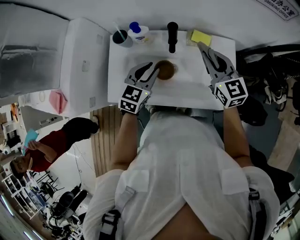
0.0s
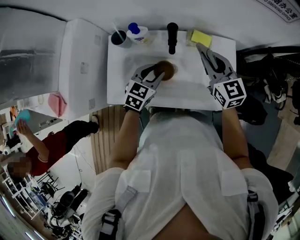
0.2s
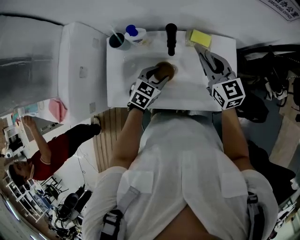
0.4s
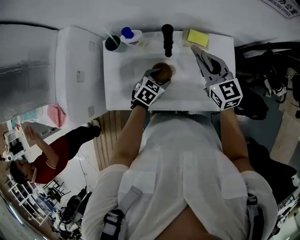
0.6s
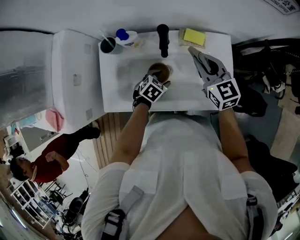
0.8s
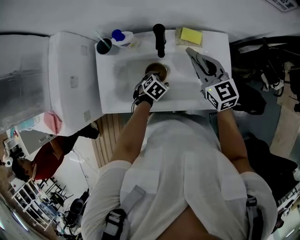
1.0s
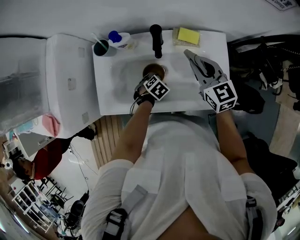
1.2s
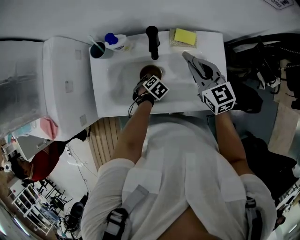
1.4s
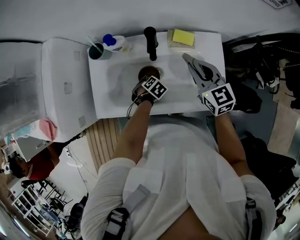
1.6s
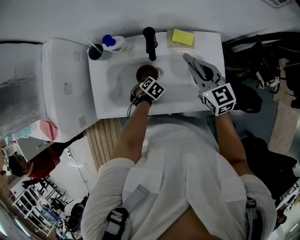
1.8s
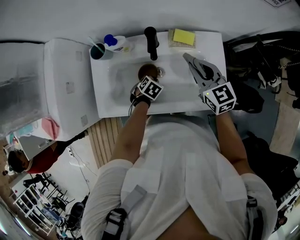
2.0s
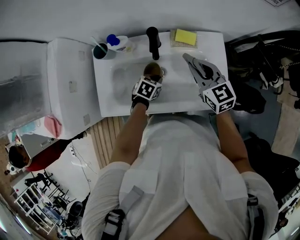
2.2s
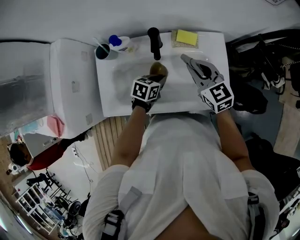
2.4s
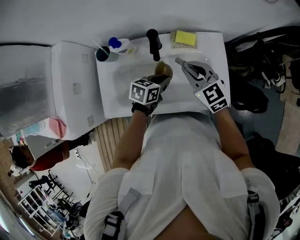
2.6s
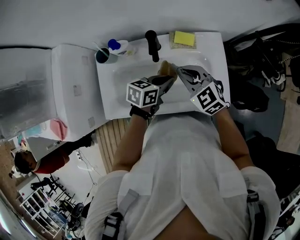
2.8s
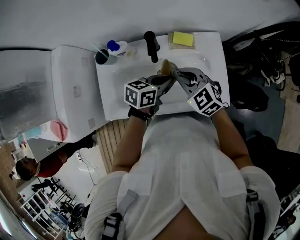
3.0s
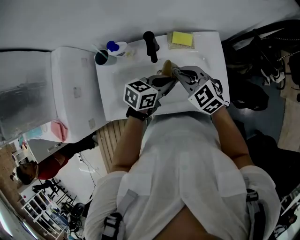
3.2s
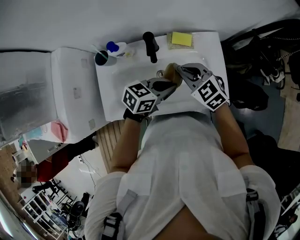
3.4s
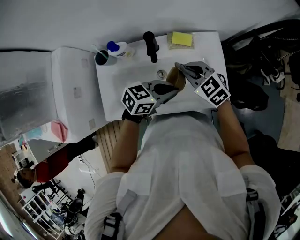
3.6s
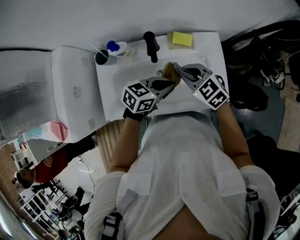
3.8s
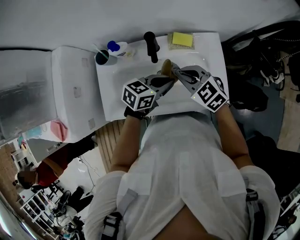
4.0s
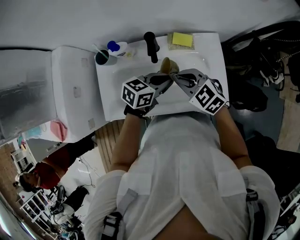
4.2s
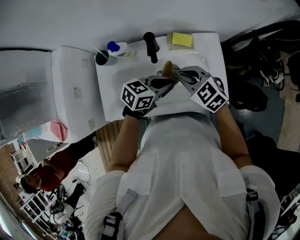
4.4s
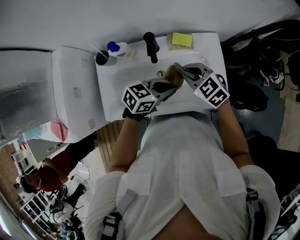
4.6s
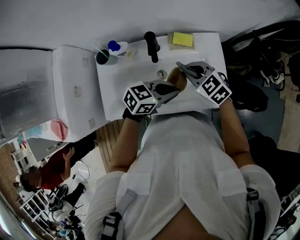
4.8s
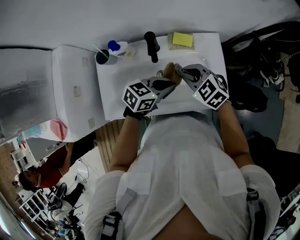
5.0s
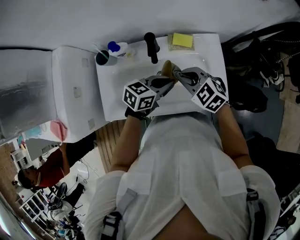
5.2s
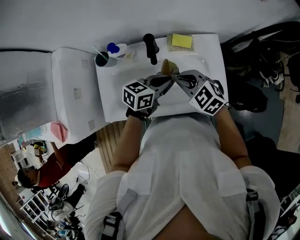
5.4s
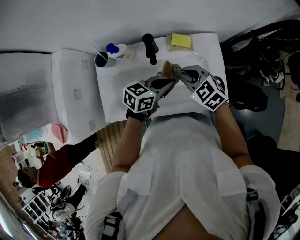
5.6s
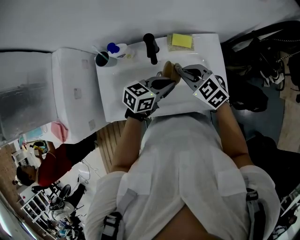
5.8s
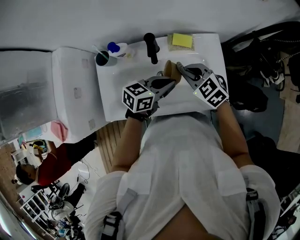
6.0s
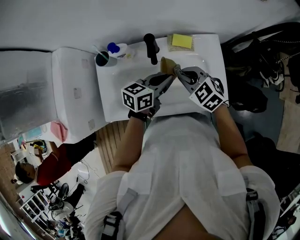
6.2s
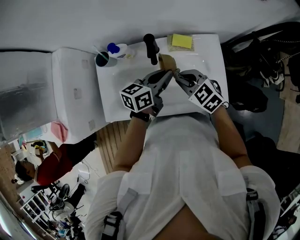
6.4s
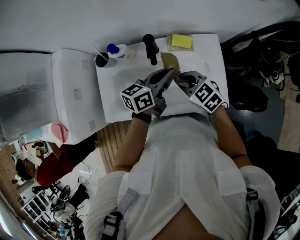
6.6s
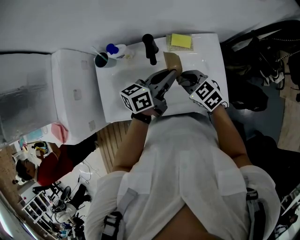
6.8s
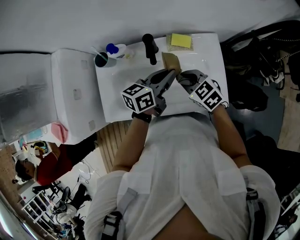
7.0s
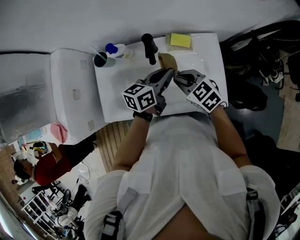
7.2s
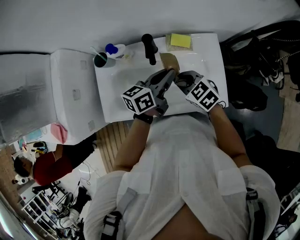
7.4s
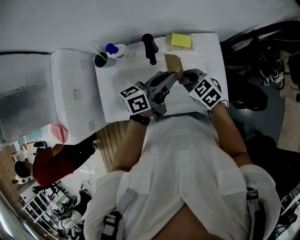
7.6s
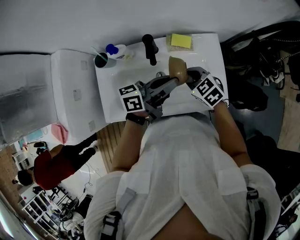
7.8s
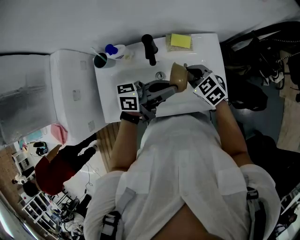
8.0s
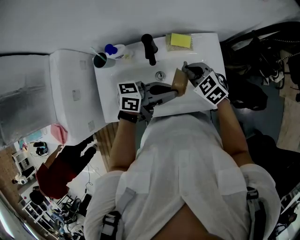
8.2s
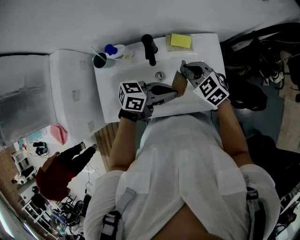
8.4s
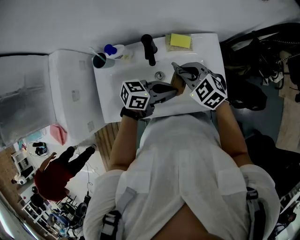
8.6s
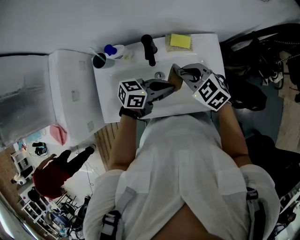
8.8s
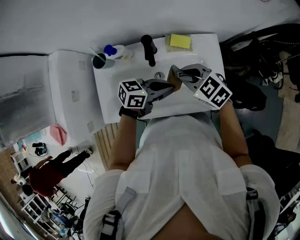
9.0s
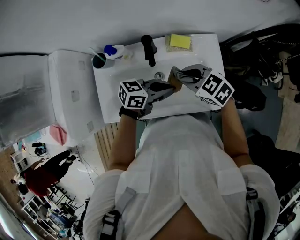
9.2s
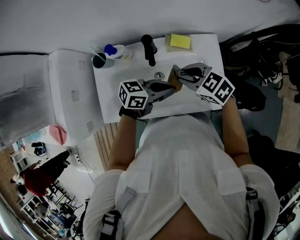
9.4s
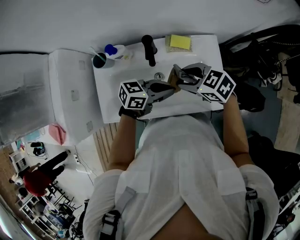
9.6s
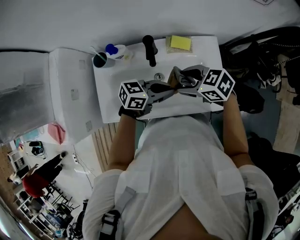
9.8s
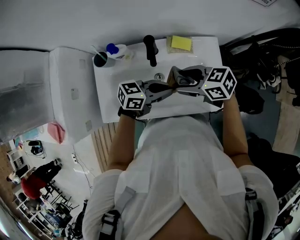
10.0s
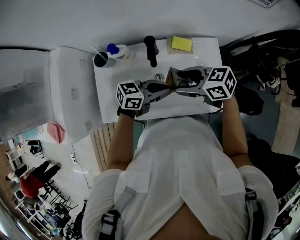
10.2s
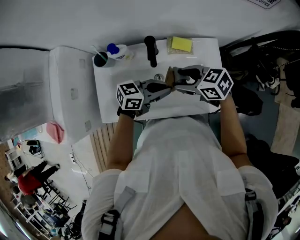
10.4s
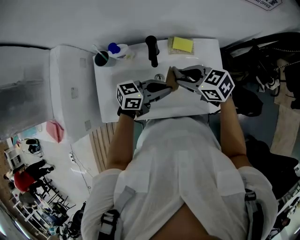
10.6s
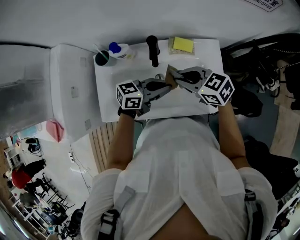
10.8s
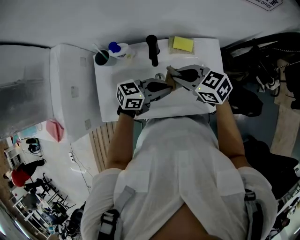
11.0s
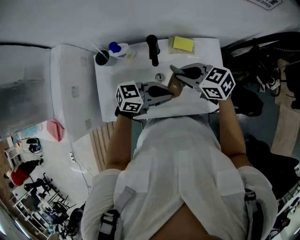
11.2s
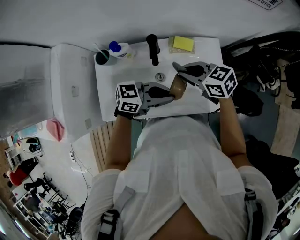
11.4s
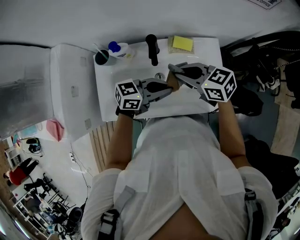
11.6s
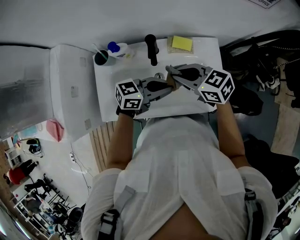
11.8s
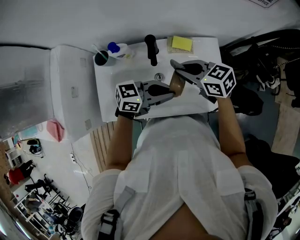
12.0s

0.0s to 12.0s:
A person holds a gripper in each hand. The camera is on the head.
0.0s to 1.6s: The right gripper travels downward by approximately 5 cm; the left gripper shifts approximately 25 cm downward, points its fingers approximately 50 degrees further downward, and opens and closes again.
1.6s to 3.0s: The right gripper moves approximately 5 cm, and swivels approximately 30 degrees. The left gripper travels upward by about 25 cm, angles its fingers upward, by approximately 50 degrees, and closes.
4.4s to 6.0s: There are only small adjustments of the grippers.
6.0s to 7.6s: The left gripper goes roughly 5 cm upward, and rotates about 30 degrees.
7.6s to 9.0s: The left gripper heads downward, covering approximately 5 cm, and swivels roughly 30 degrees, while the right gripper moves upward, some 5 cm.
9.0s to 10.4s: The right gripper turns by some 20 degrees, and opens up.
10.4s to 12.0s: The right gripper closes.

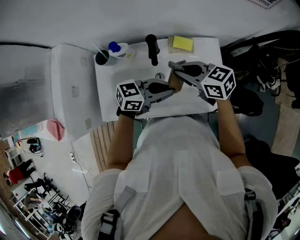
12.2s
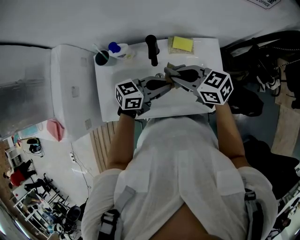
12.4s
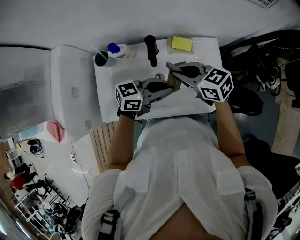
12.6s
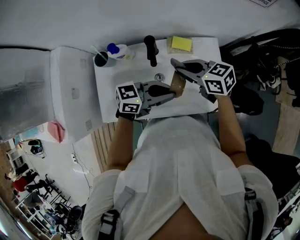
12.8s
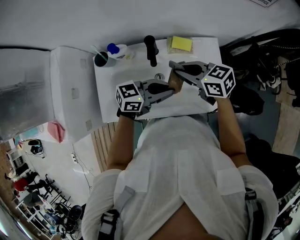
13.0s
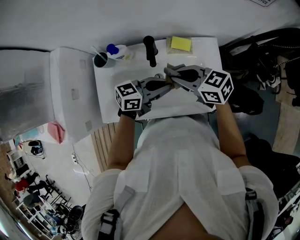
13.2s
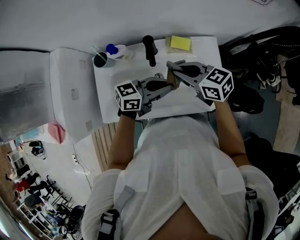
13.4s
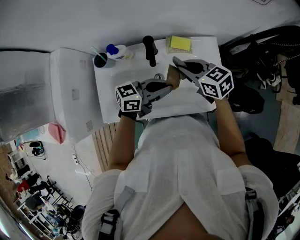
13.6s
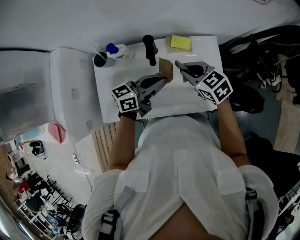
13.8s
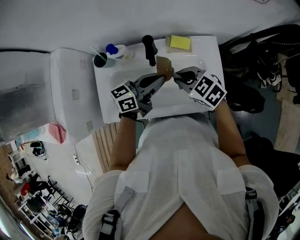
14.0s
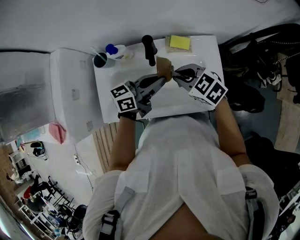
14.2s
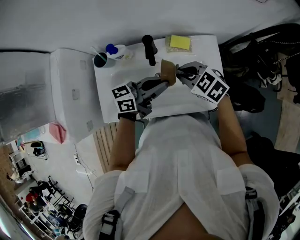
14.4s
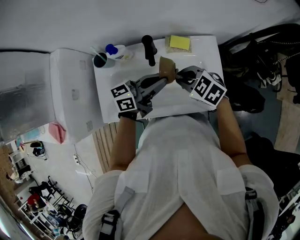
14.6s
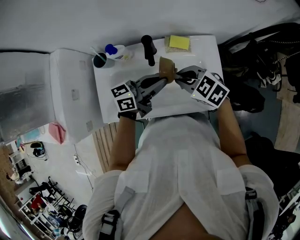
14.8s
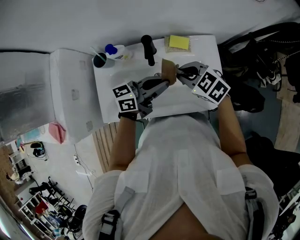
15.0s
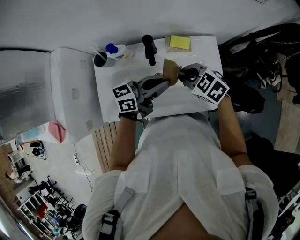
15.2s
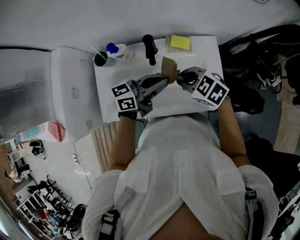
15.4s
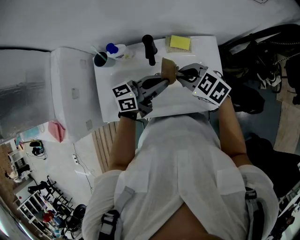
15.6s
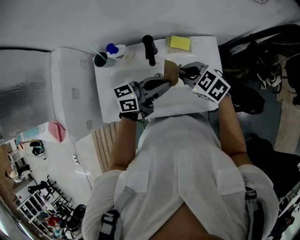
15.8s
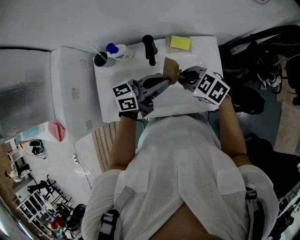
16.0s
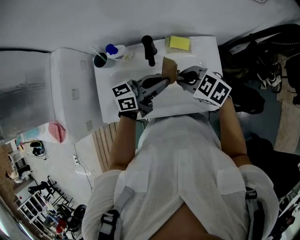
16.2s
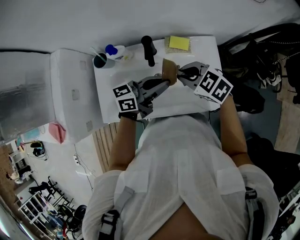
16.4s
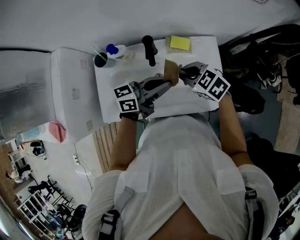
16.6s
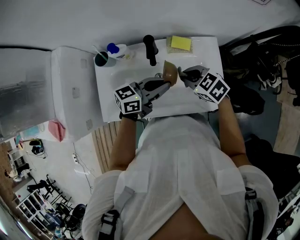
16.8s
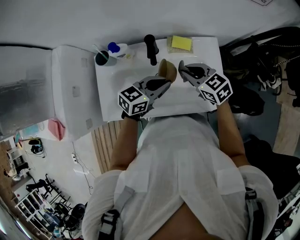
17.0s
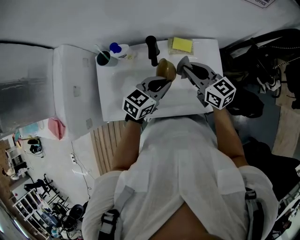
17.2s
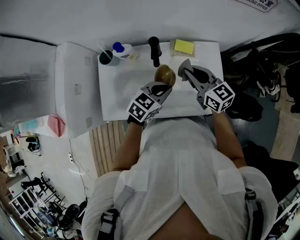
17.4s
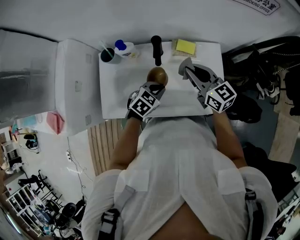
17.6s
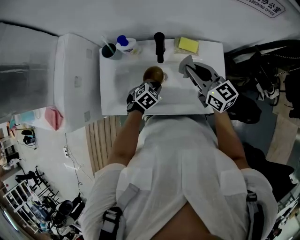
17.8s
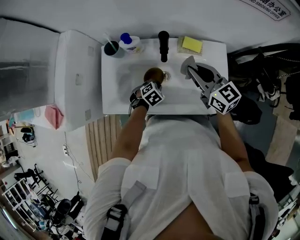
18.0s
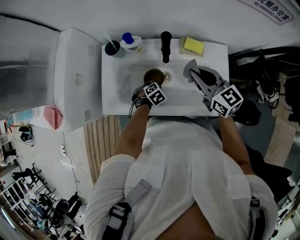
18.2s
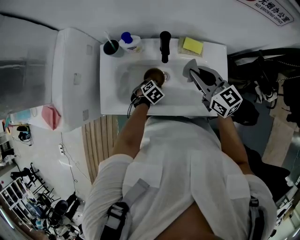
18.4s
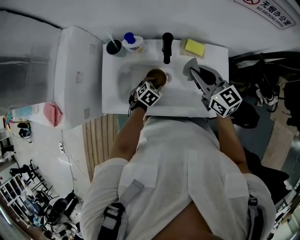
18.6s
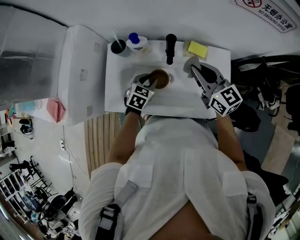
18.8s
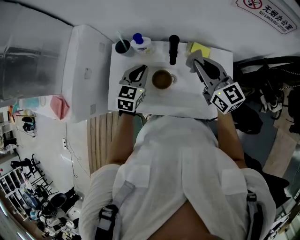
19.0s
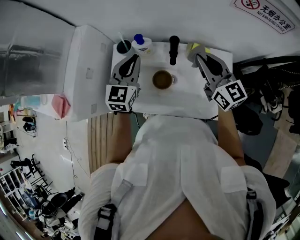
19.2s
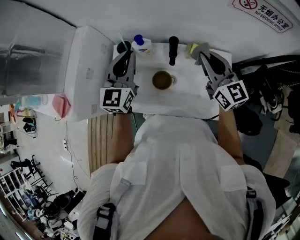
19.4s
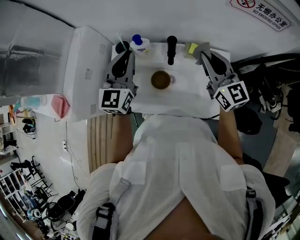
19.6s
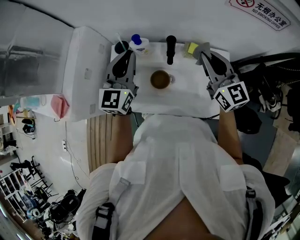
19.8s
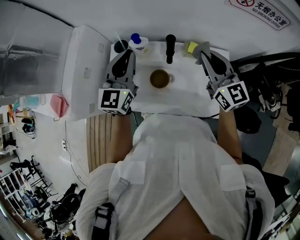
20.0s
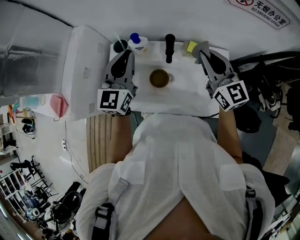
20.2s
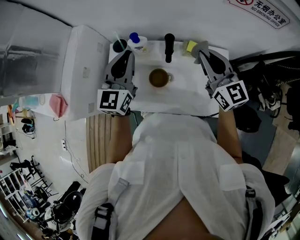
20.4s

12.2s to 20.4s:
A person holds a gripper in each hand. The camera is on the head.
12.2s to 13.8s: The left gripper changes place by some 5 cm, and swivels about 20 degrees.
13.8s to 15.4s: The right gripper changes place by roughly 5 cm.
15.4s to 17.2s: The left gripper swivels roughly 40 degrees. The right gripper changes place by roughly 10 cm, and tilts its fingers approximately 30 degrees upward.
17.2s to 18.8s: The left gripper rotates about 30 degrees, and opens up. The right gripper changes place by some 5 cm.
18.8s to 20.4s: The right gripper is displaced upward by about 10 cm. The left gripper shifts some 25 cm upward, and tilts its fingers some 50 degrees upward.

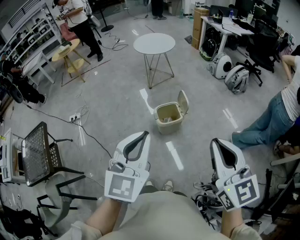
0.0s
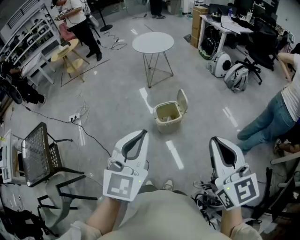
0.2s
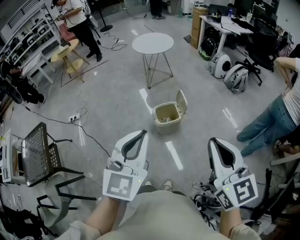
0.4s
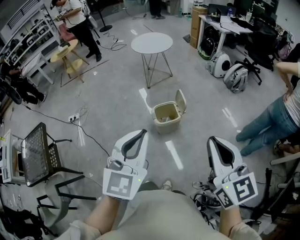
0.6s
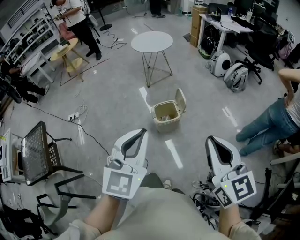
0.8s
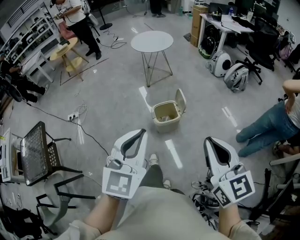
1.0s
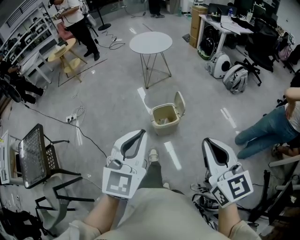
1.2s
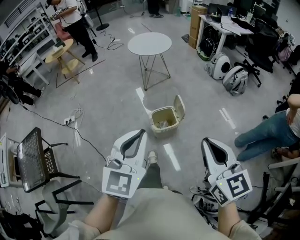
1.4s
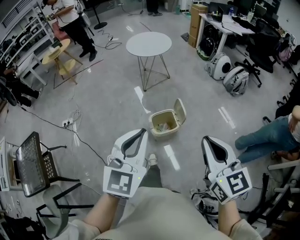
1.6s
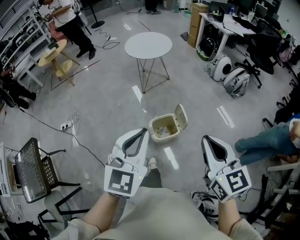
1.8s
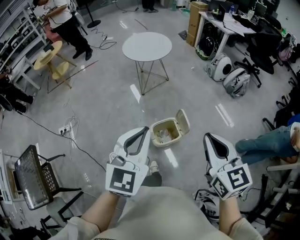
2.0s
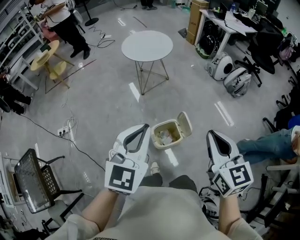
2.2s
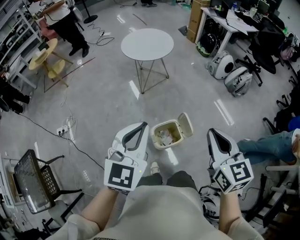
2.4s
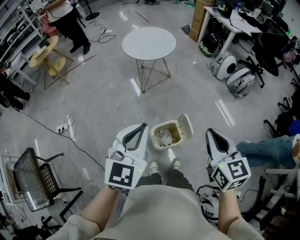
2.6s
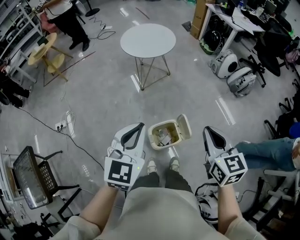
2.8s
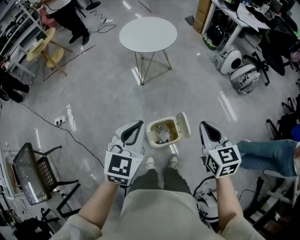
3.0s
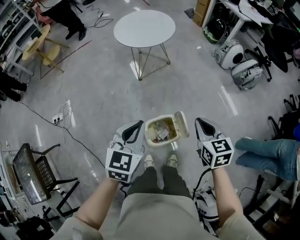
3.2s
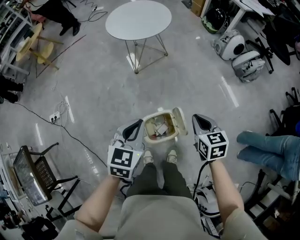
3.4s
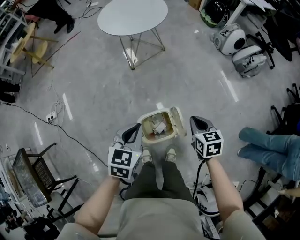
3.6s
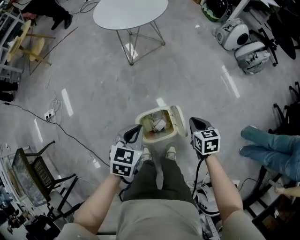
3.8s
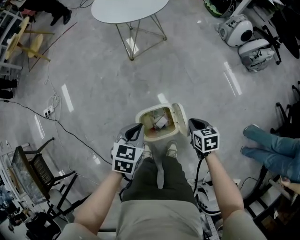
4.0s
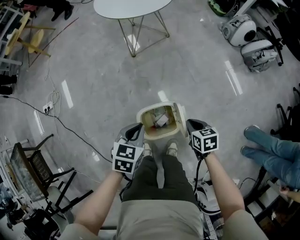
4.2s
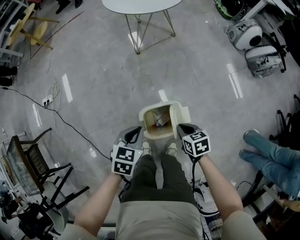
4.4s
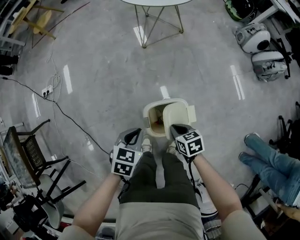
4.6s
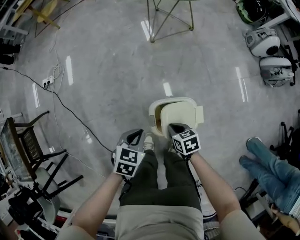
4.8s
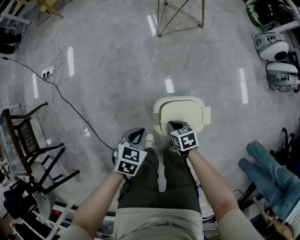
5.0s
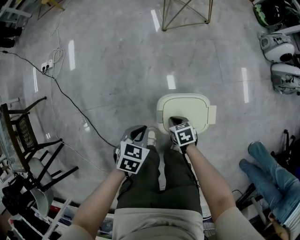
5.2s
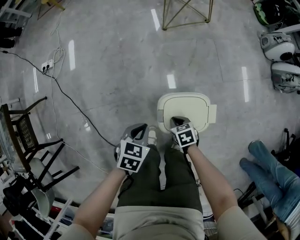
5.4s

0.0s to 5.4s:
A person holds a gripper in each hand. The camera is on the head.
0.0s to 1.4s: Both grippers move forward, approximately 10 cm.
1.4s to 2.8s: The two grippers go some 30 cm forward.
2.8s to 4.0s: Both grippers travel together downward, about 40 cm. The left gripper changes its angle by about 30 degrees. Meanwhile the right gripper points its fingers about 30 degrees further downward.
4.0s to 5.4s: The right gripper is displaced to the left and downward by approximately 30 cm, and turns by about 30 degrees; the left gripper moves downward and to the left, approximately 25 cm.
